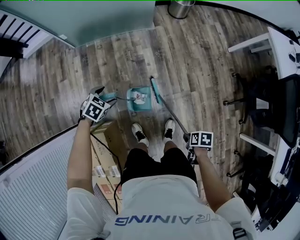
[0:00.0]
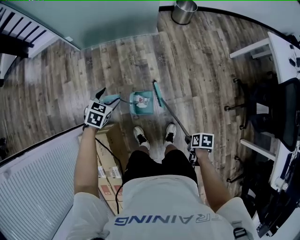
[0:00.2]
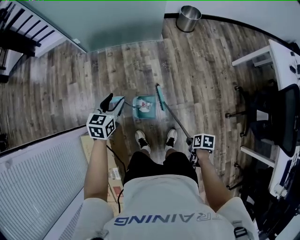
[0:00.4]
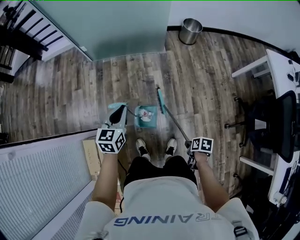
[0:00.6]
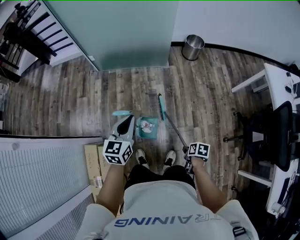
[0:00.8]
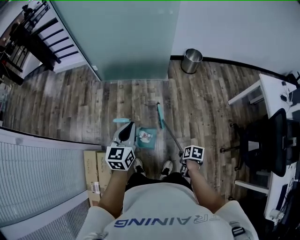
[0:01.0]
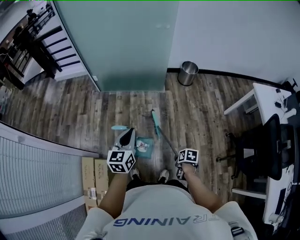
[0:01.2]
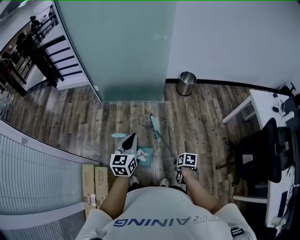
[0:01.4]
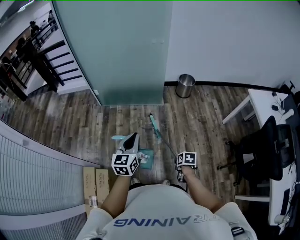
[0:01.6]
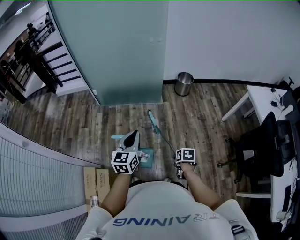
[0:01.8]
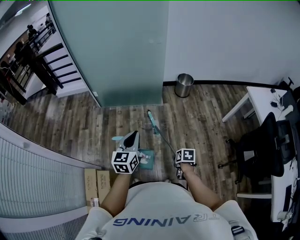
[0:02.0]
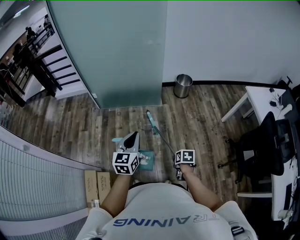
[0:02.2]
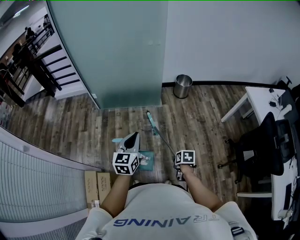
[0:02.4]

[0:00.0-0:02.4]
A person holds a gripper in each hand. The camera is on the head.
0:00.0 to 0:01.2: The left gripper is displaced upward by roughly 30 cm, tilts its fingers approximately 50 degrees upward, and closes.

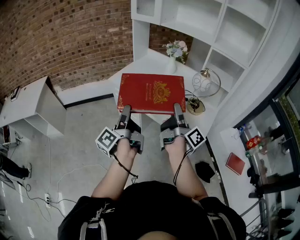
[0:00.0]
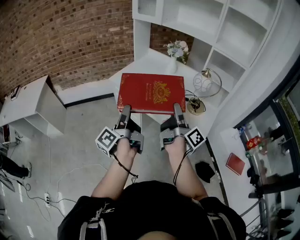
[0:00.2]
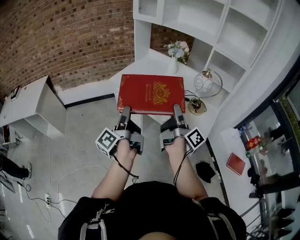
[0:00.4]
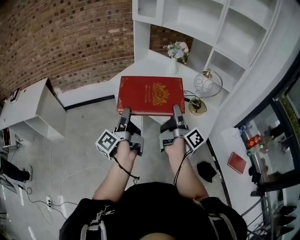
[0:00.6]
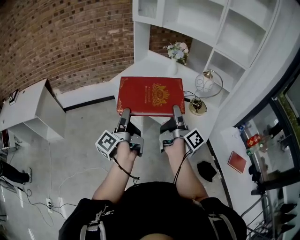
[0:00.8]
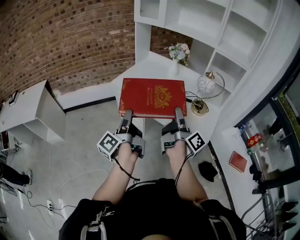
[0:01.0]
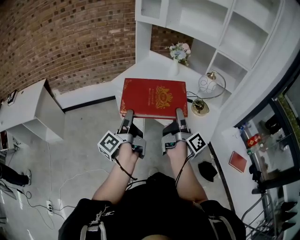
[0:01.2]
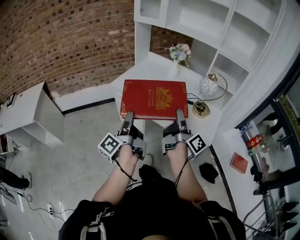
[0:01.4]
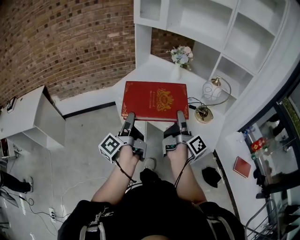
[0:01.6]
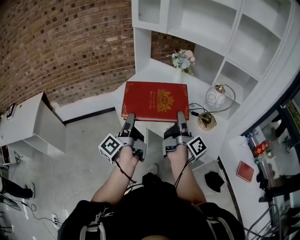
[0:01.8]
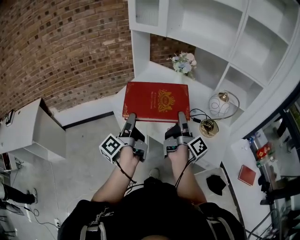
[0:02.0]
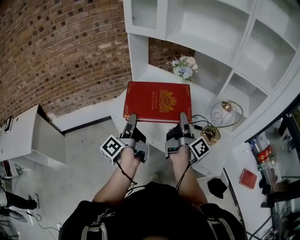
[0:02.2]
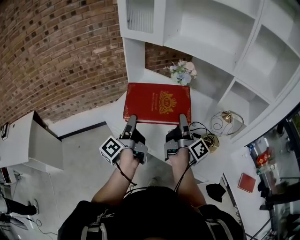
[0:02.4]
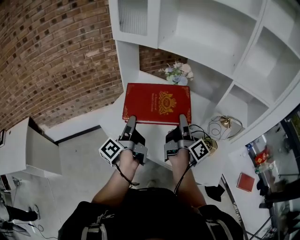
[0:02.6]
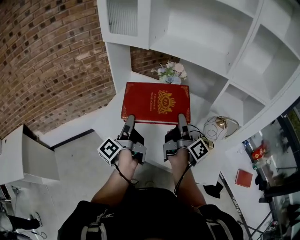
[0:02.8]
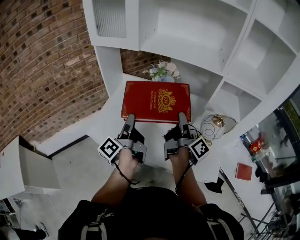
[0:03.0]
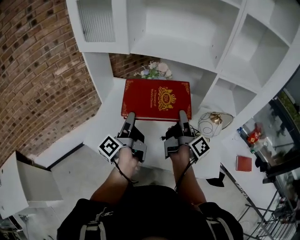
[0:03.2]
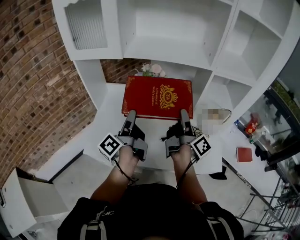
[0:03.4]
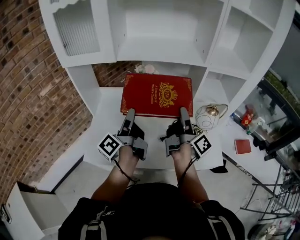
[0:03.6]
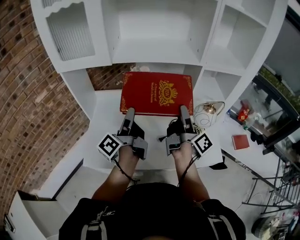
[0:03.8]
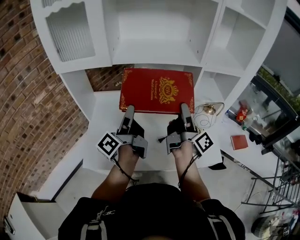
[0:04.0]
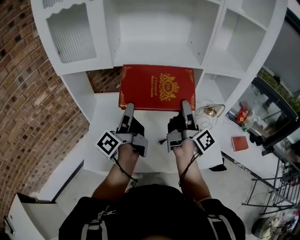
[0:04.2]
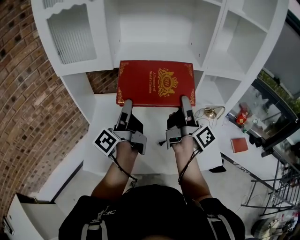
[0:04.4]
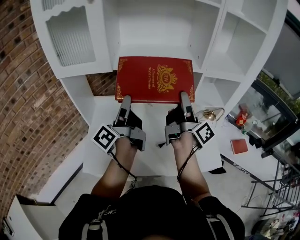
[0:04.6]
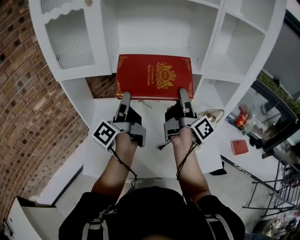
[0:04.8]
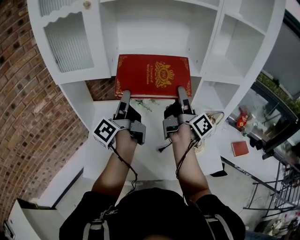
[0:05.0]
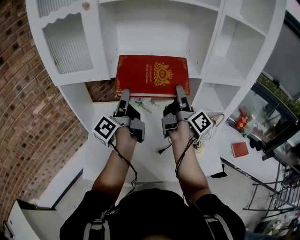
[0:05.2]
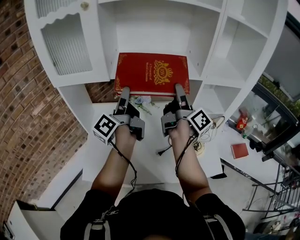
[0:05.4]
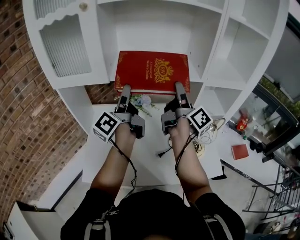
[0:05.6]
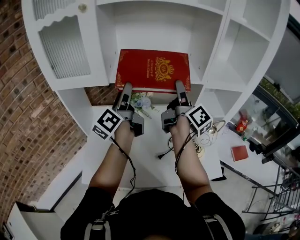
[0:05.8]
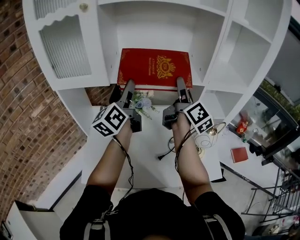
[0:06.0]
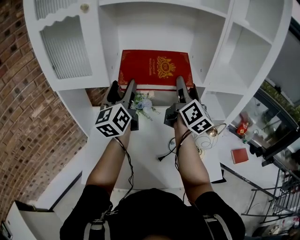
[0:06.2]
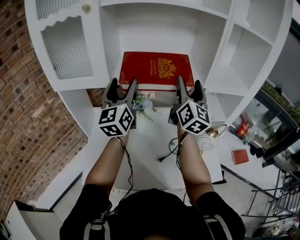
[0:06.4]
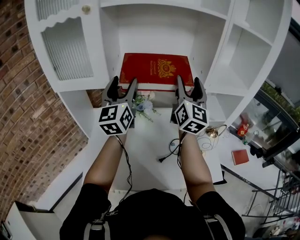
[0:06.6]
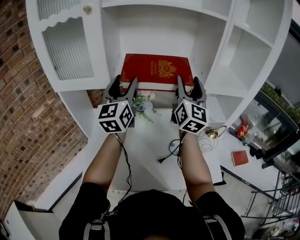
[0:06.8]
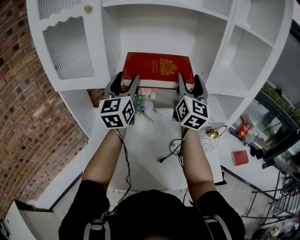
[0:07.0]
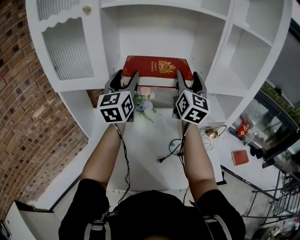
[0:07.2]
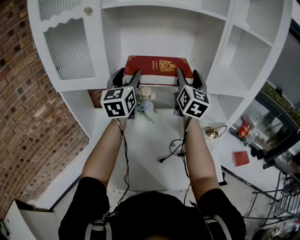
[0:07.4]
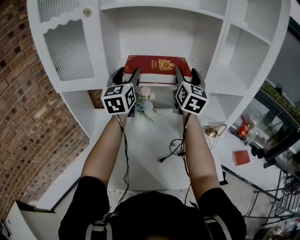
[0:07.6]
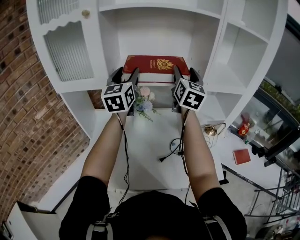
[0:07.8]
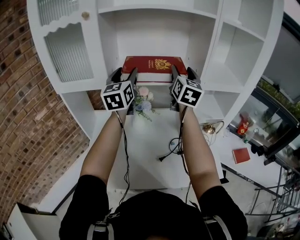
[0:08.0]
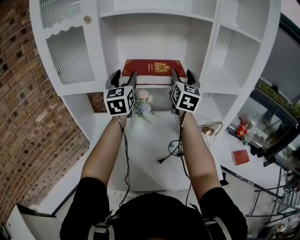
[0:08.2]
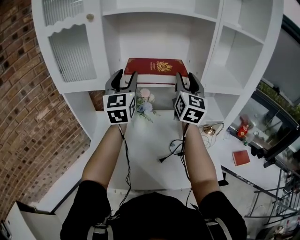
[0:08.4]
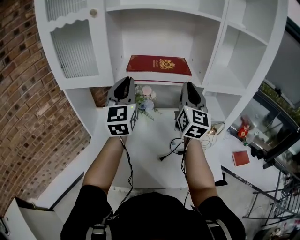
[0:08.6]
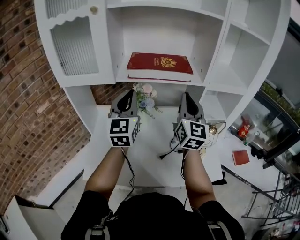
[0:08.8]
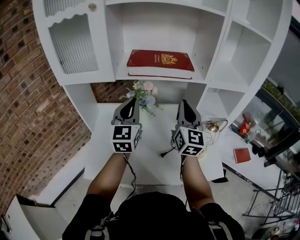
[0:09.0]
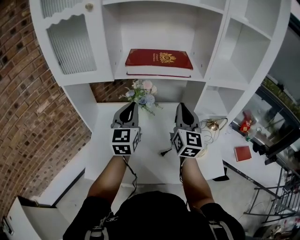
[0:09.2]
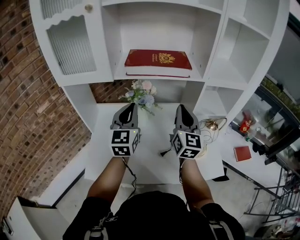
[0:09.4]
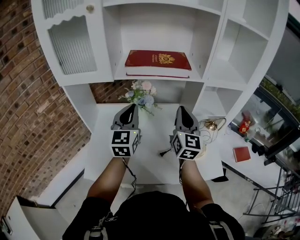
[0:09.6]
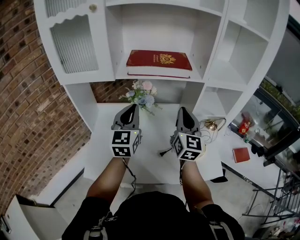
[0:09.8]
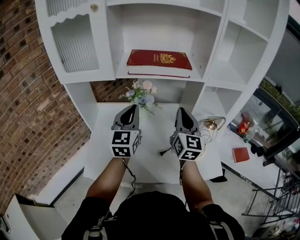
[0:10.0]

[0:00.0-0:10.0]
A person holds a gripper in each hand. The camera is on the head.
0:00.0 to 0:01.4: Both grippers travel together to the left, about 5 cm.
0:01.4 to 0:02.8: Both grippers travel together forward, roughly 40 cm.
0:02.8 to 0:04.2: The left gripper ends up approximately 15 cm from where it was, and rotates approximately 30 degrees. The right gripper travels upward by approximately 5 cm, and turns by some 30 degrees.
0:04.2 to 0:05.8: The two grippers go about 15 cm forward and upward. The left gripper changes its angle by approximately 30 degrees.
0:05.8 to 0:07.2: The two grippers go about 5 cm upward. The right gripper rolls counterclockwise, seen from behind, by approximately 60 degrees, while the left gripper twists about 50 degrees clockwise, seen from behind.
0:07.2 to 0:08.6: Both grippers move backward, roughly 5 cm. The left gripper closes its fingers, while the right gripper closes its fingers.
0:08.6 to 0:10.0: Both grippers travel together downward and backward, roughly 15 cm.

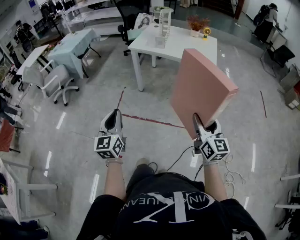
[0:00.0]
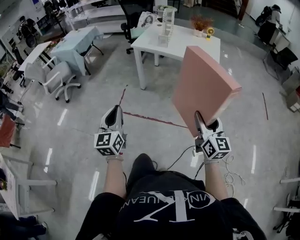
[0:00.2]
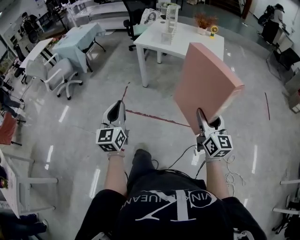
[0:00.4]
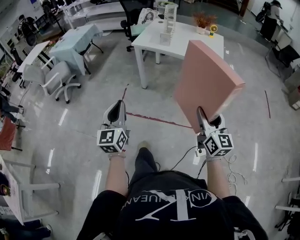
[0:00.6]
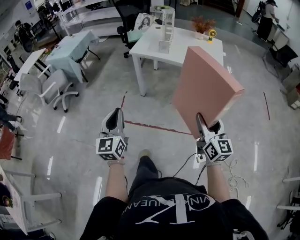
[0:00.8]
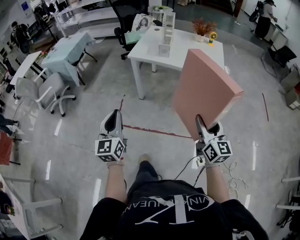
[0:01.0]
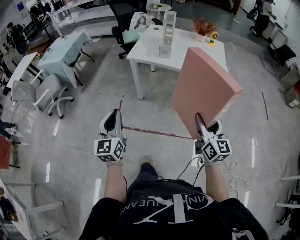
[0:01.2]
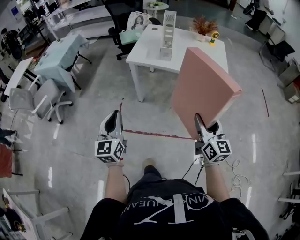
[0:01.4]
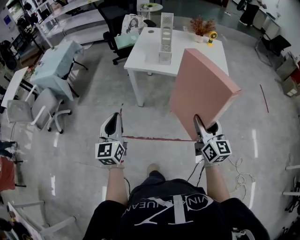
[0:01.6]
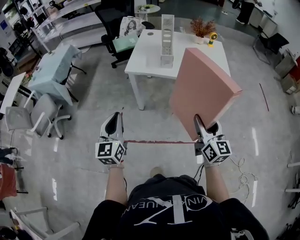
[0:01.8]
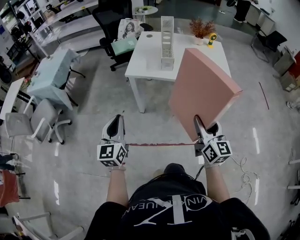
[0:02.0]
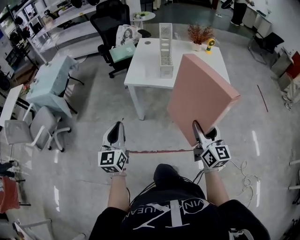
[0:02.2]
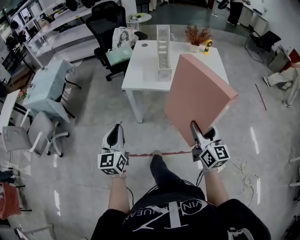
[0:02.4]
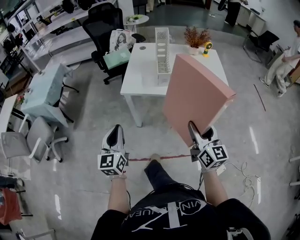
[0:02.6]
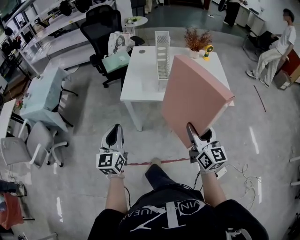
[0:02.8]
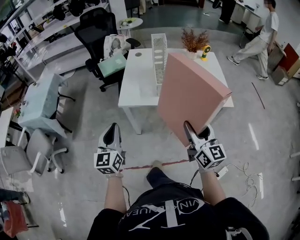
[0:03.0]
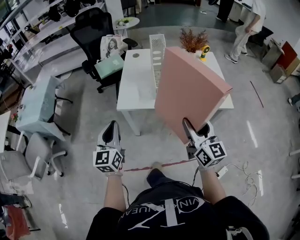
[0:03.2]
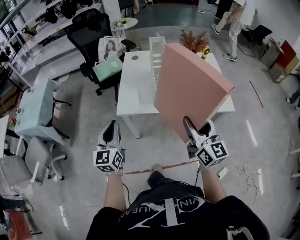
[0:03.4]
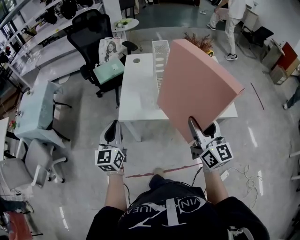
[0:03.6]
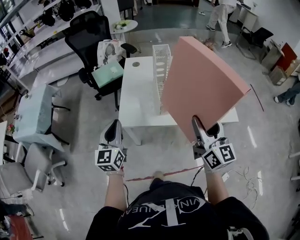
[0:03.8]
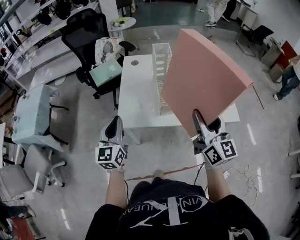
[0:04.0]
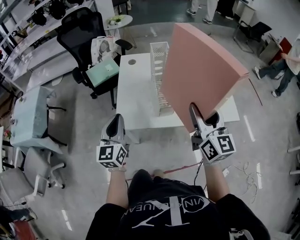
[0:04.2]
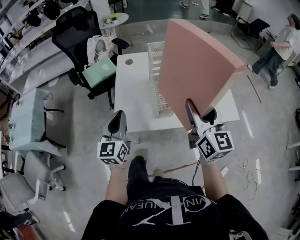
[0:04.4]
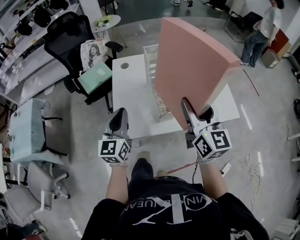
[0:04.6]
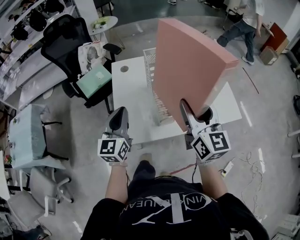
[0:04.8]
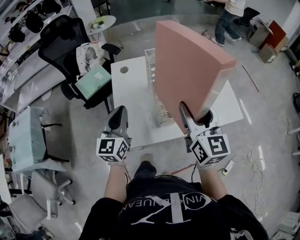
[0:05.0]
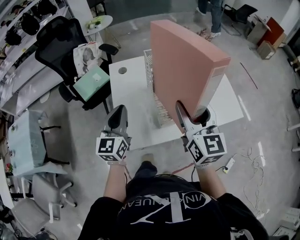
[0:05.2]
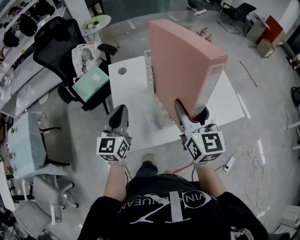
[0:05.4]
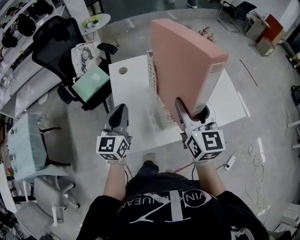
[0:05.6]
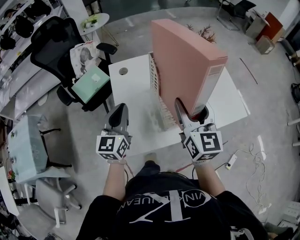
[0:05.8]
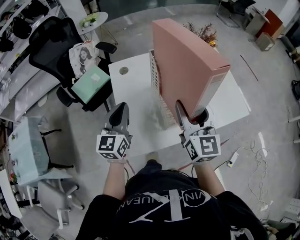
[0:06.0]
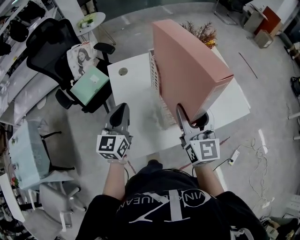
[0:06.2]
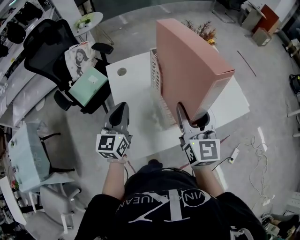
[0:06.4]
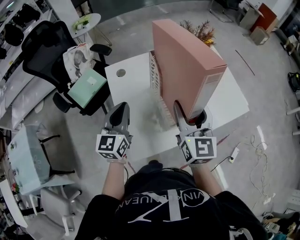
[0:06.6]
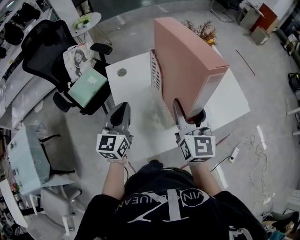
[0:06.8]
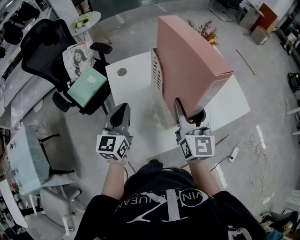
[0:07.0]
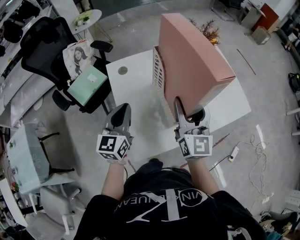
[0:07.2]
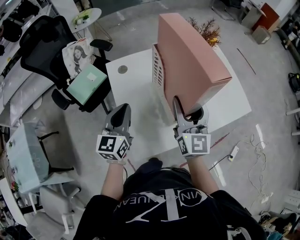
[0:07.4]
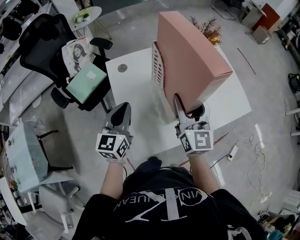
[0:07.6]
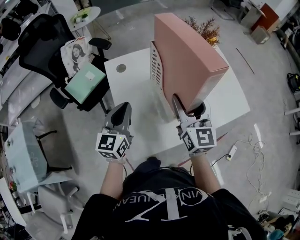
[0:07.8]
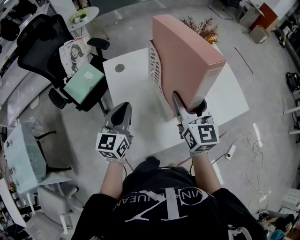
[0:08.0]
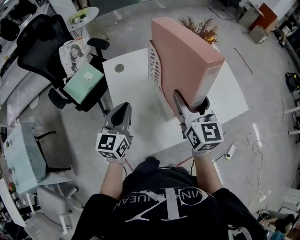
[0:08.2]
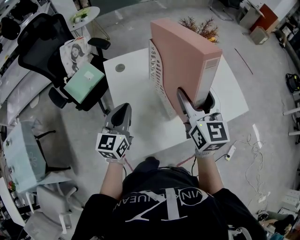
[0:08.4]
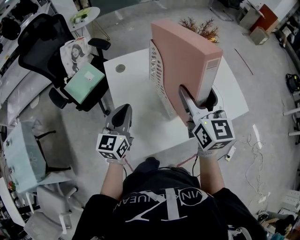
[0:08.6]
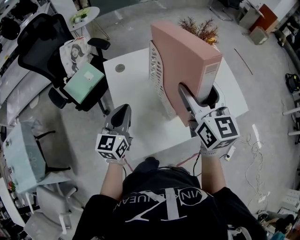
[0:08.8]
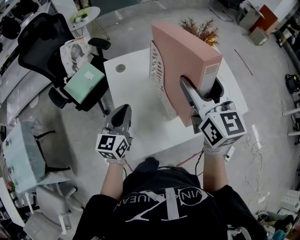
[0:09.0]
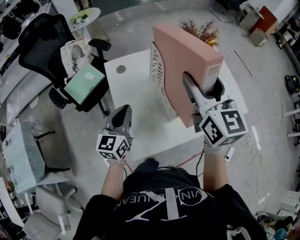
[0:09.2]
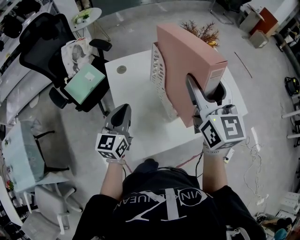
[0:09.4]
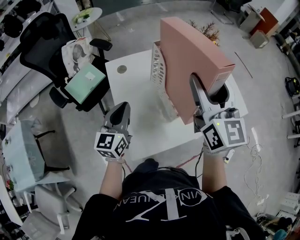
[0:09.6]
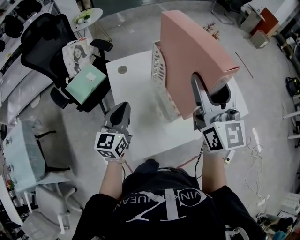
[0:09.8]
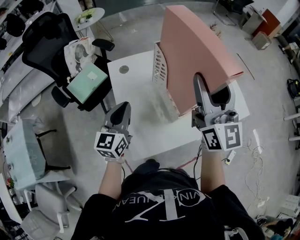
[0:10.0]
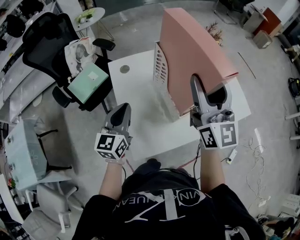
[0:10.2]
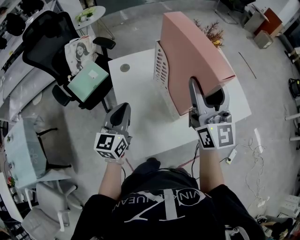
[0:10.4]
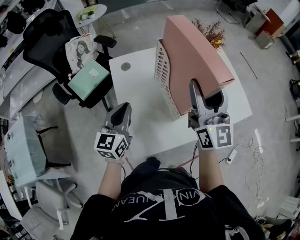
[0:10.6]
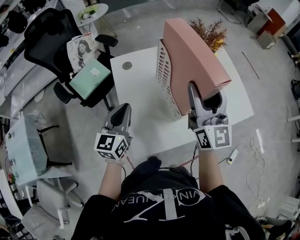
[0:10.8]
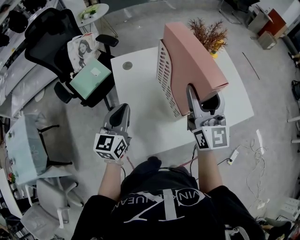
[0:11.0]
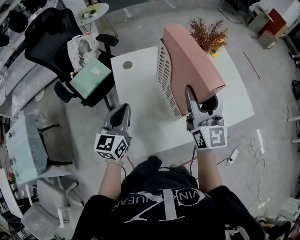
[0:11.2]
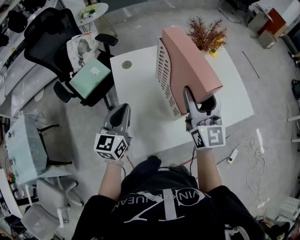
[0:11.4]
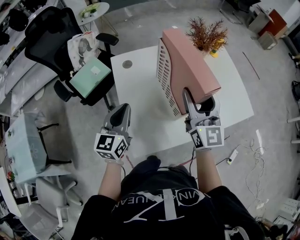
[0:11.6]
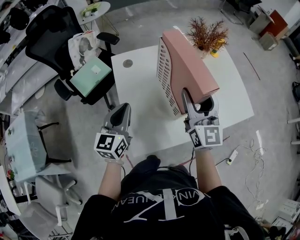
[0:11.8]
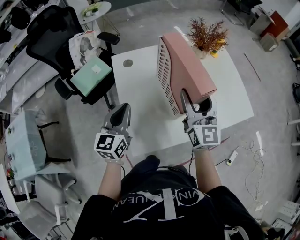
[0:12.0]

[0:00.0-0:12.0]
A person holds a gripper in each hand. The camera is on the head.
0:00.0 to 0:01.6: Both grippers travel together forward, roughly 35 cm.
0:01.6 to 0:03.0: The right gripper heads forward and to the left, covering about 25 cm; the left gripper shifts some 25 cm forward.
0:03.0 to 0:04.4: The grippers both shift forward by roughly 25 cm.
0:04.4 to 0:06.0: The right gripper heads forward and to the left, covering roughly 15 cm. Meanwhile the left gripper travels forward by roughly 20 cm.
0:06.0 to 0:07.6: The right gripper moves roughly 5 cm.
0:07.6 to 0:09.0: The right gripper shifts approximately 10 cm upward.
0:10.4 to 0:12.0: The right gripper moves downward, approximately 10 cm.
